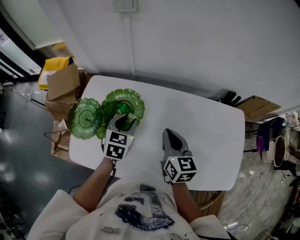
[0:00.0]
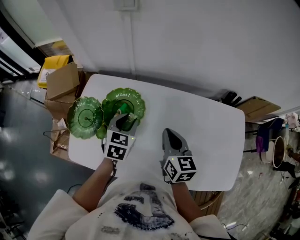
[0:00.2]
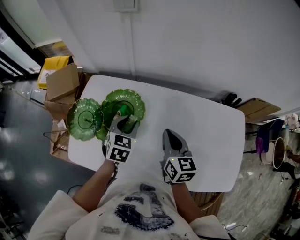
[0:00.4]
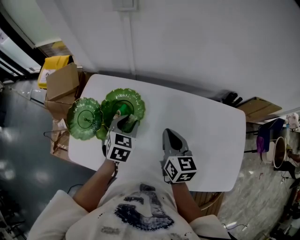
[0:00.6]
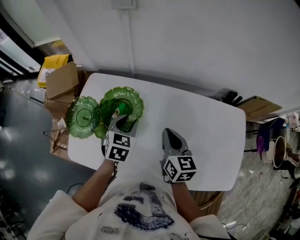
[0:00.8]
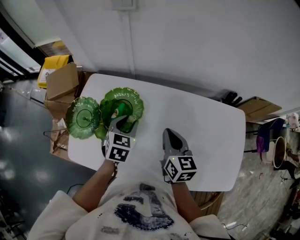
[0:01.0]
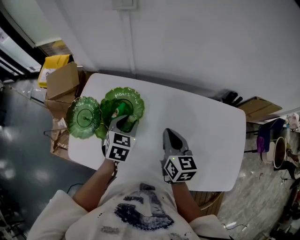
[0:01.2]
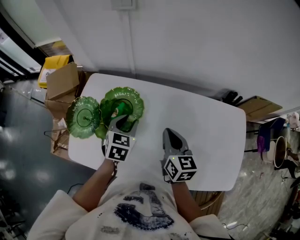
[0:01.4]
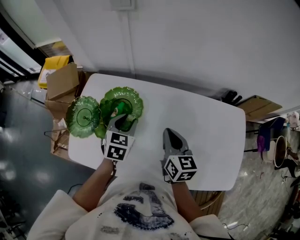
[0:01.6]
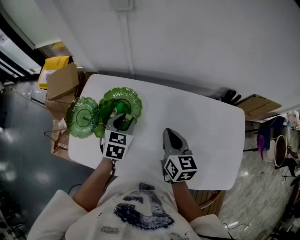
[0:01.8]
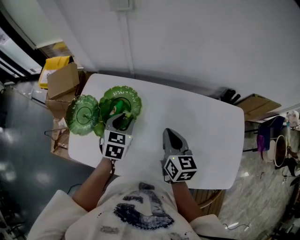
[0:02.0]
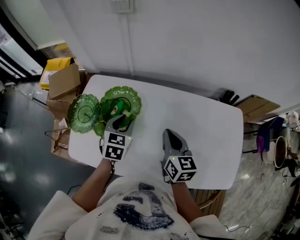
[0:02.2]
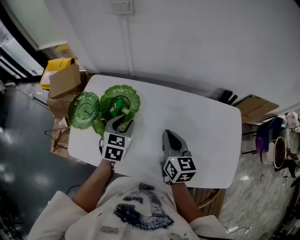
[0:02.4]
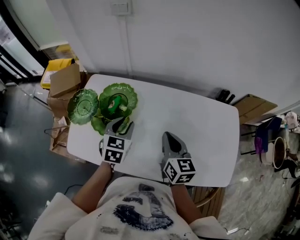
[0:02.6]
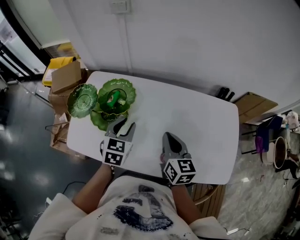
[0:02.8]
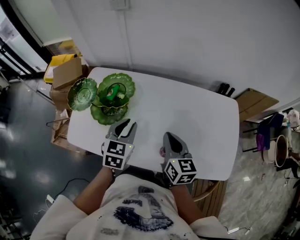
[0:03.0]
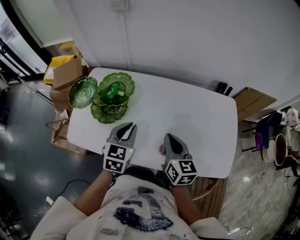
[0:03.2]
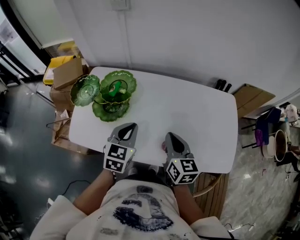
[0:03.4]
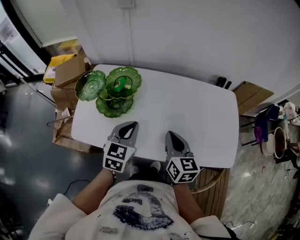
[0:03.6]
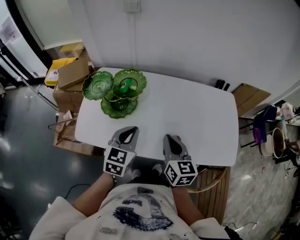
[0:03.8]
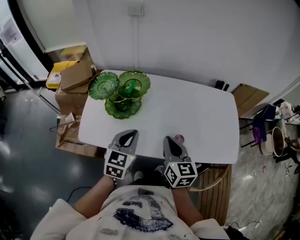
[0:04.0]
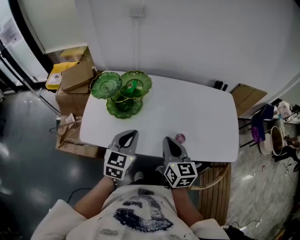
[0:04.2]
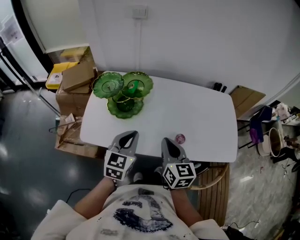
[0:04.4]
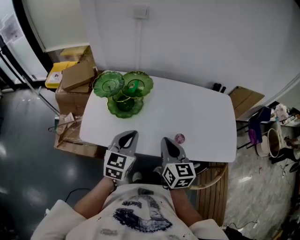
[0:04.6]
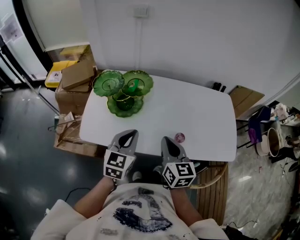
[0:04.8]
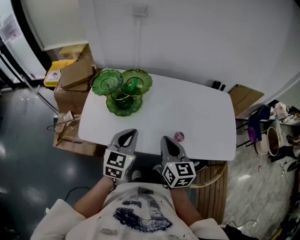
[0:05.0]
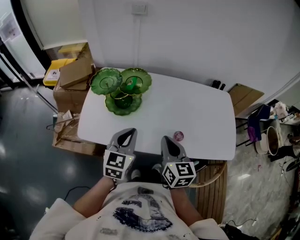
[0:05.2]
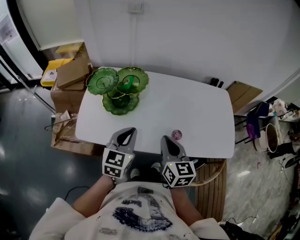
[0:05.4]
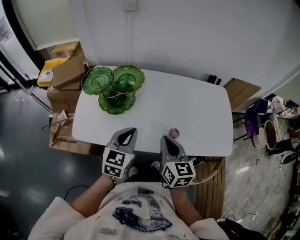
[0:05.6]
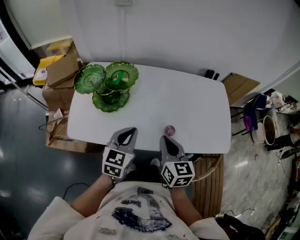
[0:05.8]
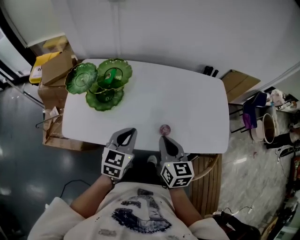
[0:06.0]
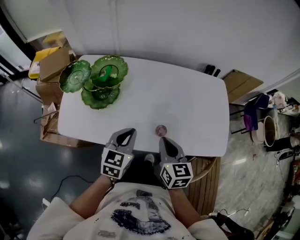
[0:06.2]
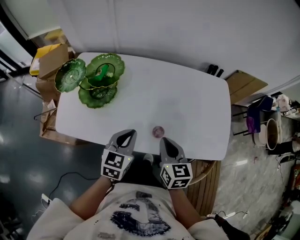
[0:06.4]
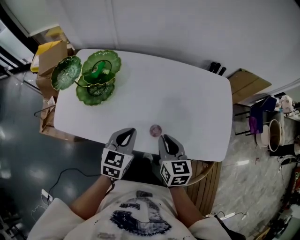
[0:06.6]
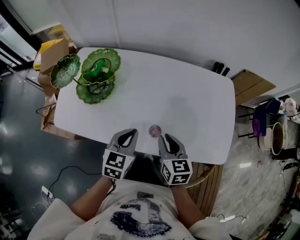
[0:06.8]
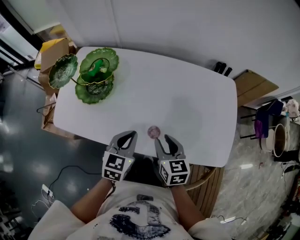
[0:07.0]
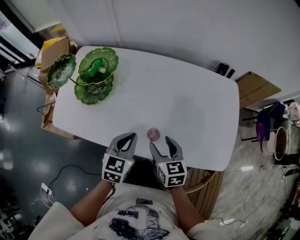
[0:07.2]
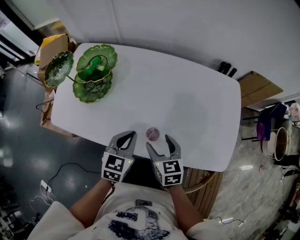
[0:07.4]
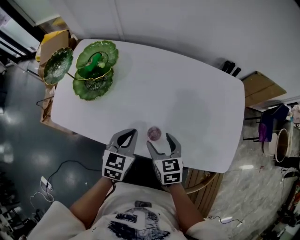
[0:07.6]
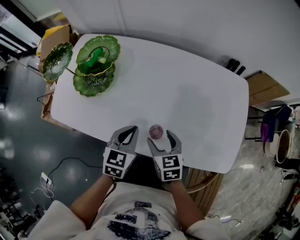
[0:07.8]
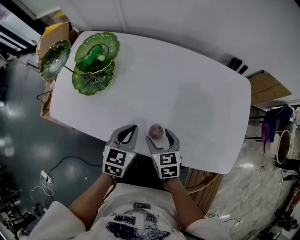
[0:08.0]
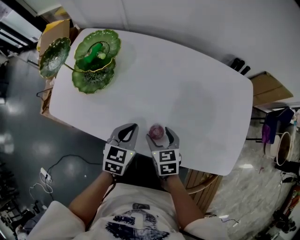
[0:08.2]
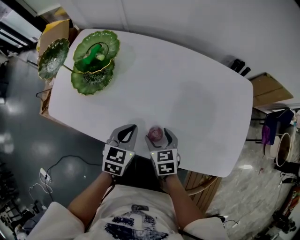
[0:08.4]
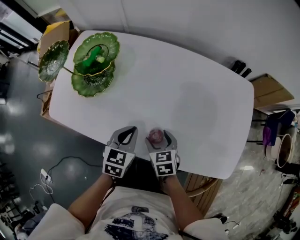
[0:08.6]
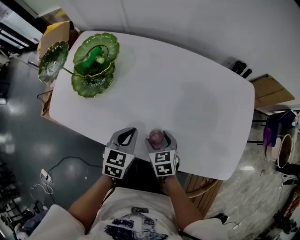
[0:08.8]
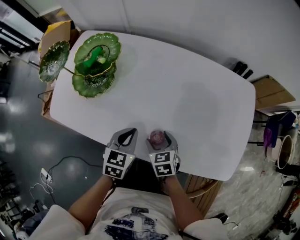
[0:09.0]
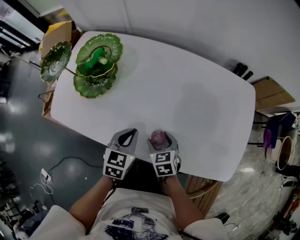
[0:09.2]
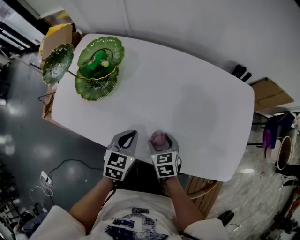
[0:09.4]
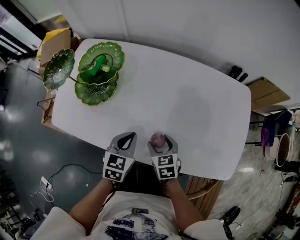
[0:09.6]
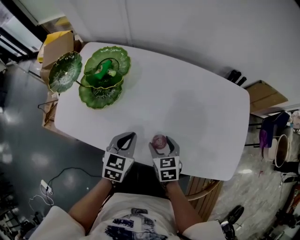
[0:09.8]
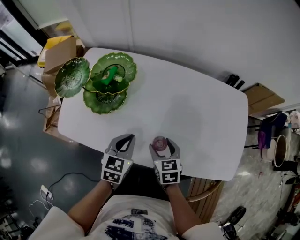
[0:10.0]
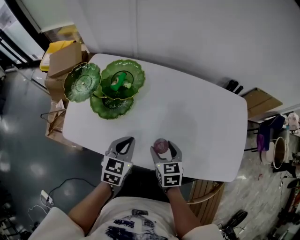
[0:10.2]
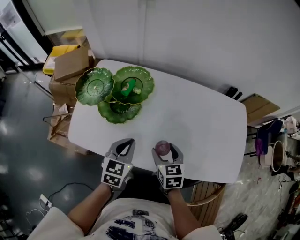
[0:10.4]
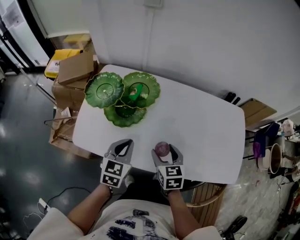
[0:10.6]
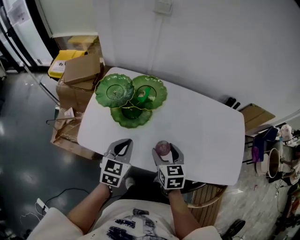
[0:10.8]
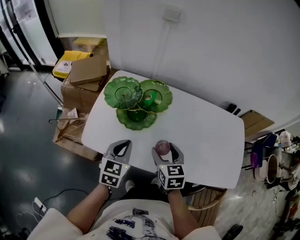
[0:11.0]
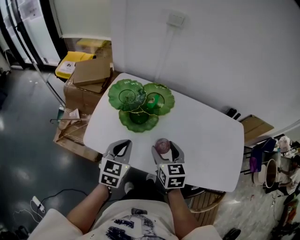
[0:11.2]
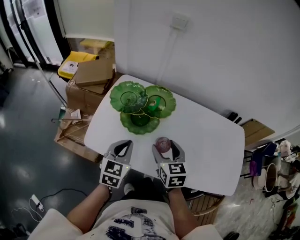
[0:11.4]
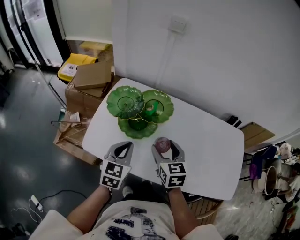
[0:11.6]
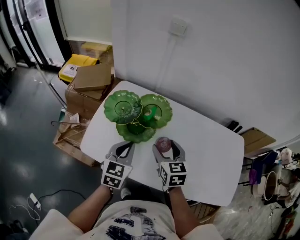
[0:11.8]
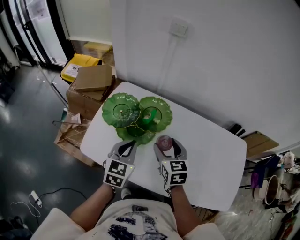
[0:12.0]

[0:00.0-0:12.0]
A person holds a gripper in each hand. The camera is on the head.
0:00.0 to 0:01.6: The grippers move only a little.
0:01.6 to 0:03.0: The grippers both shift backward and to the right by roughly 15 cm.
0:03.0 to 0:04.4: Both grippers move backward and to the left, about 20 cm. The left gripper closes.
0:04.4 to 0:06.0: Both grippers travel together to the right, about 10 cm.
0:06.0 to 0:07.6: The grippers both shift downward and to the right by some 15 cm. The right gripper swivels some 20 degrees, and opens its fingers.
0:07.6 to 0:09.0: The right gripper travels downward by about 10 cm. Meanwhile the left gripper moves downward, approximately 5 cm.
0:09.0 to 0:10.4: The right gripper goes some 15 cm upward and to the left; the left gripper goes roughly 15 cm to the left and upward.
0:10.4 to 0:12.0: The right gripper heads forward, upward and to the left, covering roughly 20 cm. The left gripper travels to the left, upward and forward by roughly 15 cm.

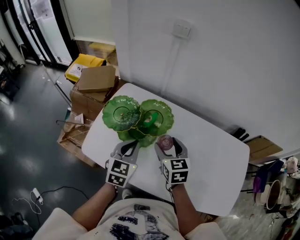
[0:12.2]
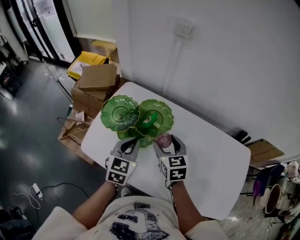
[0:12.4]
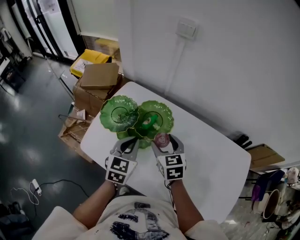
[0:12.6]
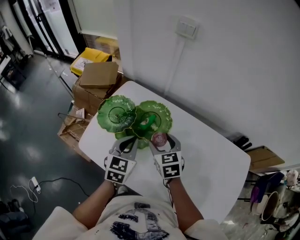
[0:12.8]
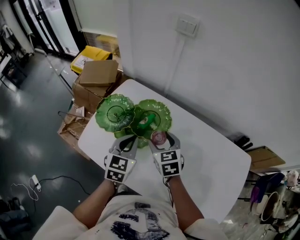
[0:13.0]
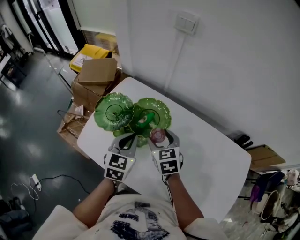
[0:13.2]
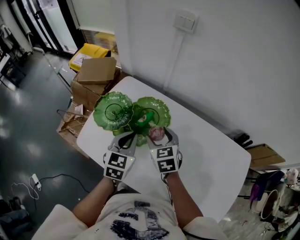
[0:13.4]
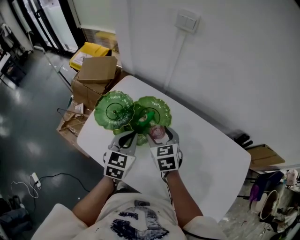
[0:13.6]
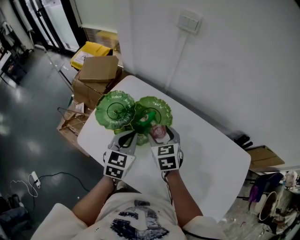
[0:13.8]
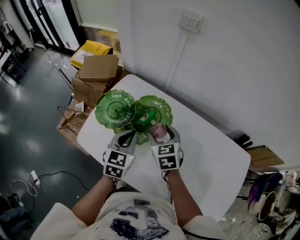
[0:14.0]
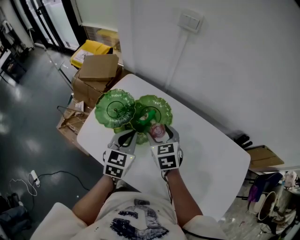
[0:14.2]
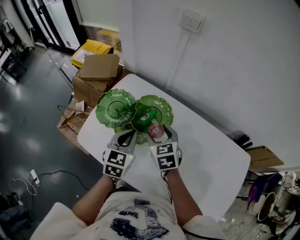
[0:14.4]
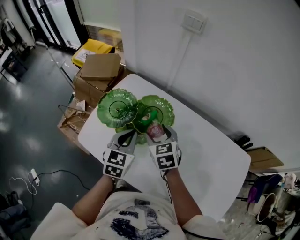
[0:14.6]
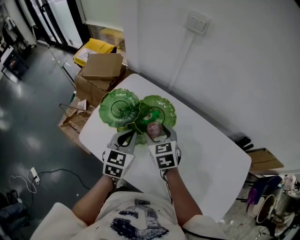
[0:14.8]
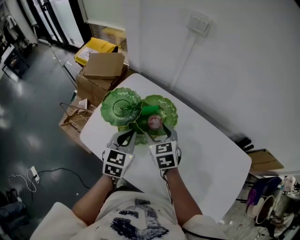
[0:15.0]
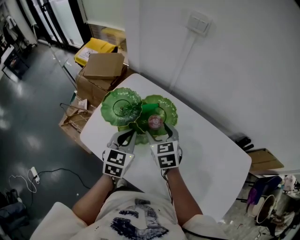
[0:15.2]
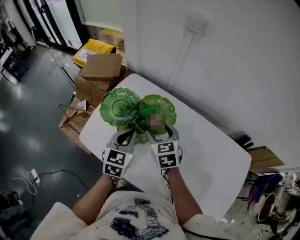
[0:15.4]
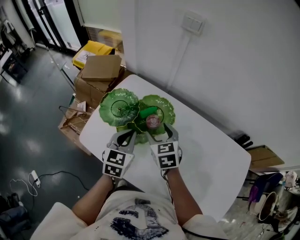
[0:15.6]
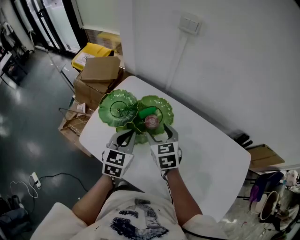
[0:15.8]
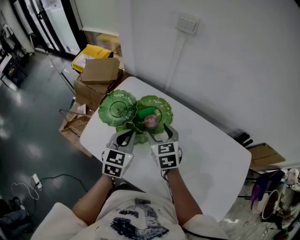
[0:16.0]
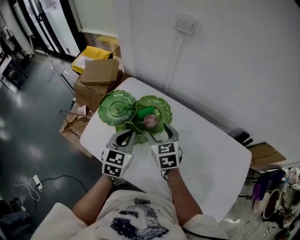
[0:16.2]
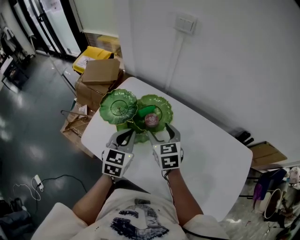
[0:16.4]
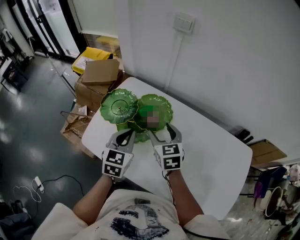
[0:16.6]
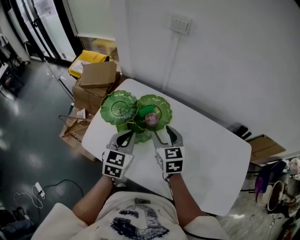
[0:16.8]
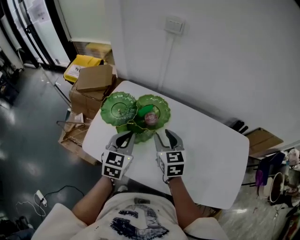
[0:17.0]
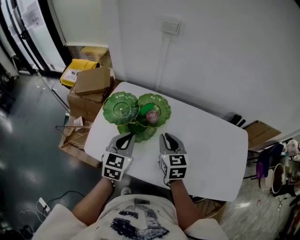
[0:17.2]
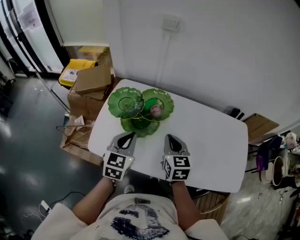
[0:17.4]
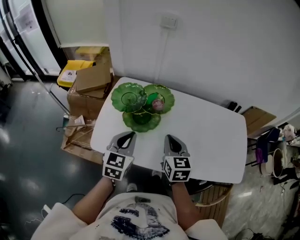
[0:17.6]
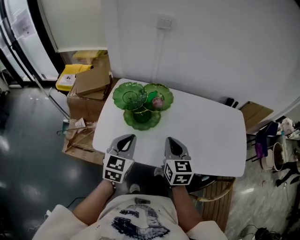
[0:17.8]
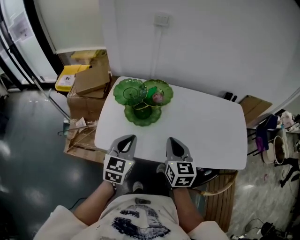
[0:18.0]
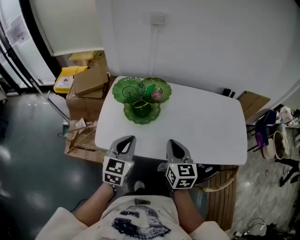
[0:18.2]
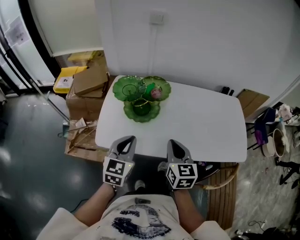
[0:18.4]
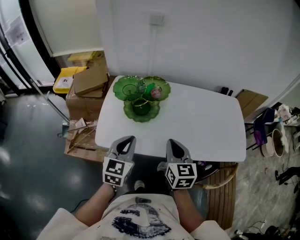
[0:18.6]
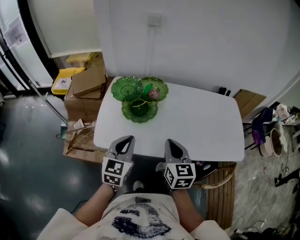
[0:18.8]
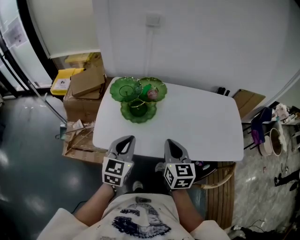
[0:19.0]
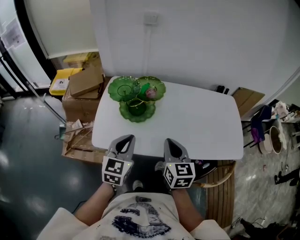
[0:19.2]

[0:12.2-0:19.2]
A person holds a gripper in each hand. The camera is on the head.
0:12.2 to 0:13.6: The right gripper shifts about 5 cm forward. The left gripper ends up some 5 cm from where it was.
0:13.6 to 0:16.4: The grippers move only a little.
0:16.4 to 0:17.8: The left gripper travels backward and to the left by roughly 15 cm, and swivels about 20 degrees. Meanwhile the right gripper travels backward by approximately 20 cm, swivels roughly 30 degrees, and closes up.
0:17.8 to 0:19.2: Both grippers move backward, some 5 cm.

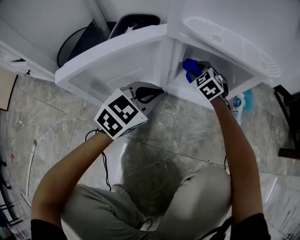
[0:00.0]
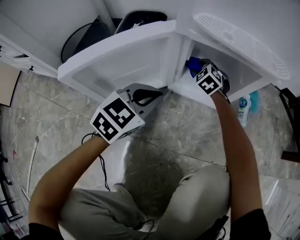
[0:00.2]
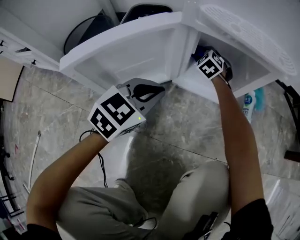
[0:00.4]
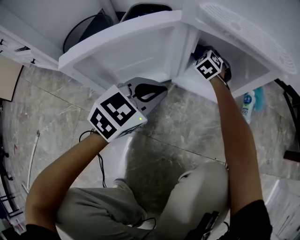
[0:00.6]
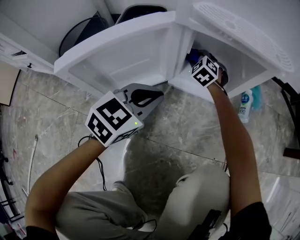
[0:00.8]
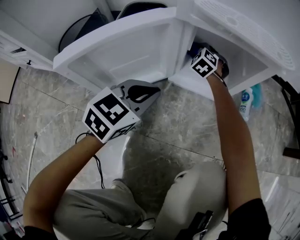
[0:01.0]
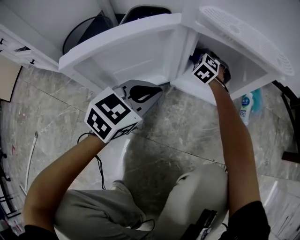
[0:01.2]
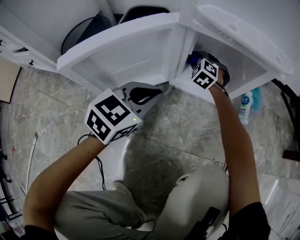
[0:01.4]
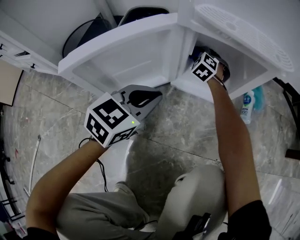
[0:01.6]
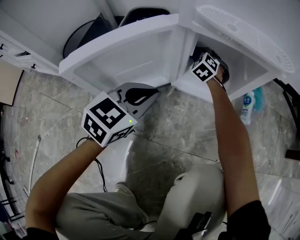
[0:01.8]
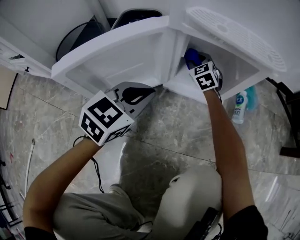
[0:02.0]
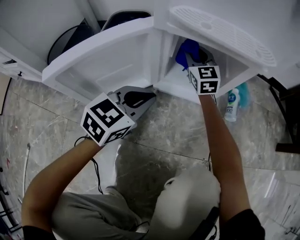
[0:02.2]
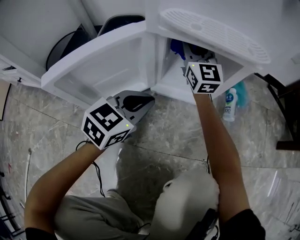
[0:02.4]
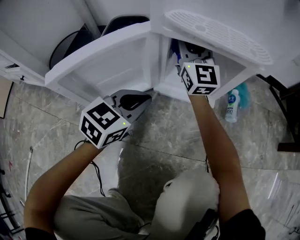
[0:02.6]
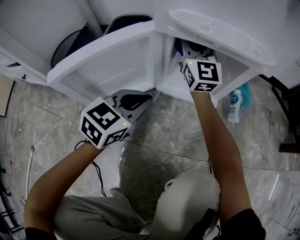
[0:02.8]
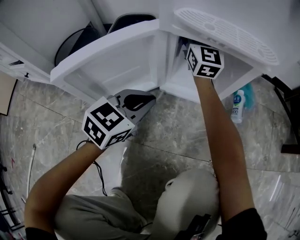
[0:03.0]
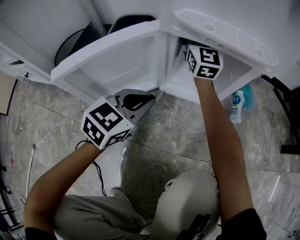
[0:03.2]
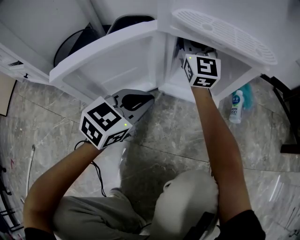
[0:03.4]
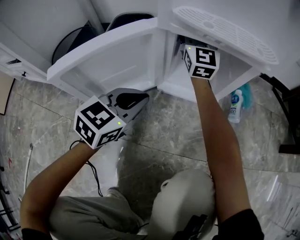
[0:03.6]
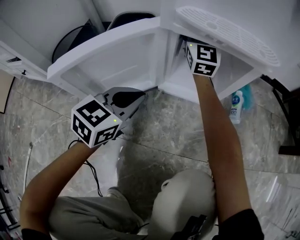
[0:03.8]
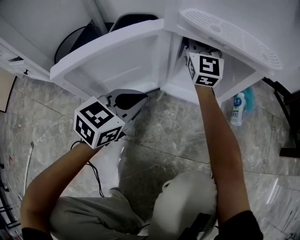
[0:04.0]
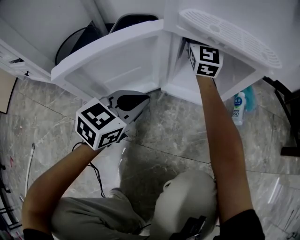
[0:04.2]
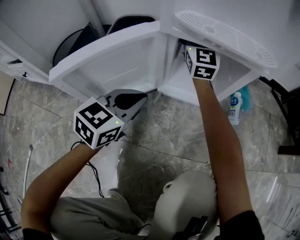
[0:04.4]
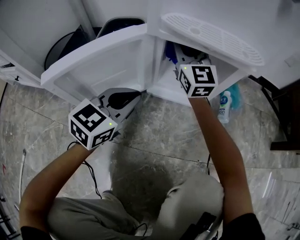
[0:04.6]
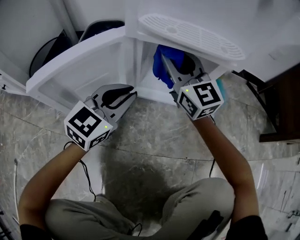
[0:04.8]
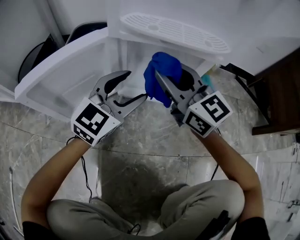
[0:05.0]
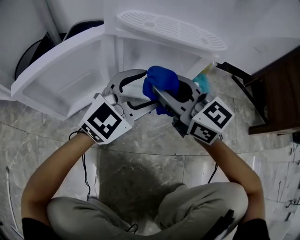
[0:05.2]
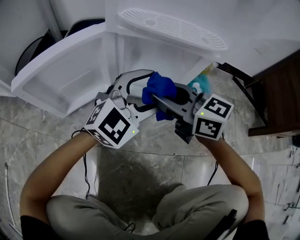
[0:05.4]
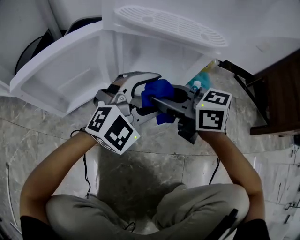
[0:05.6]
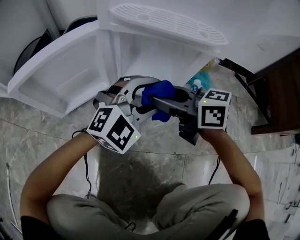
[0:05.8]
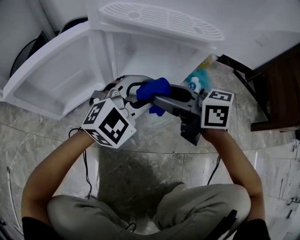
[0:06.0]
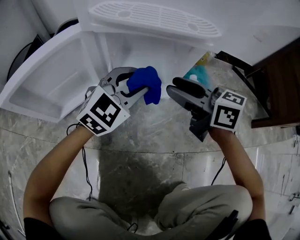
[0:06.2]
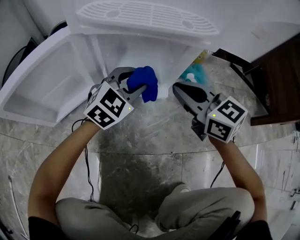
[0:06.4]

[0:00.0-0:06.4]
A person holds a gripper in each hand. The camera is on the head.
0:00.0 to 0:01.6: The right gripper shifts about 5 cm forward.
0:01.6 to 0:03.2: The right gripper goes some 25 cm upward, and tilts its fingers about 60 degrees upward.
0:03.2 to 0:04.8: The right gripper shifts some 10 cm backward.
0:04.8 to 0:06.4: The left gripper goes roughly 15 cm to the right, downward and forward, and opens up. The right gripper heads to the right, backward and downward, covering some 15 cm, turns by some 30 degrees, and closes up.
